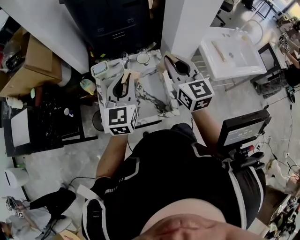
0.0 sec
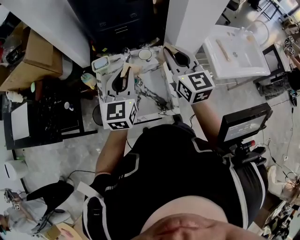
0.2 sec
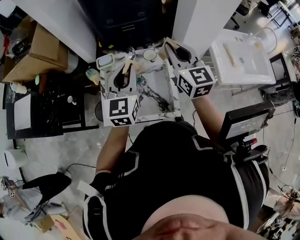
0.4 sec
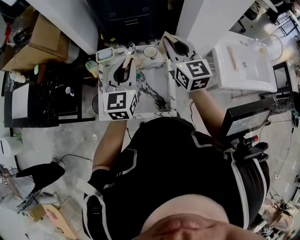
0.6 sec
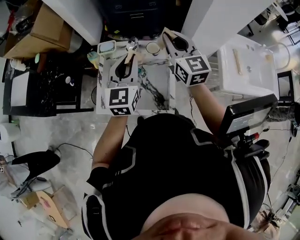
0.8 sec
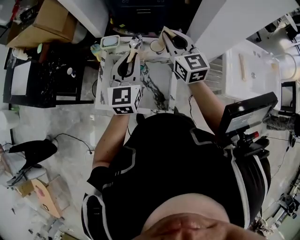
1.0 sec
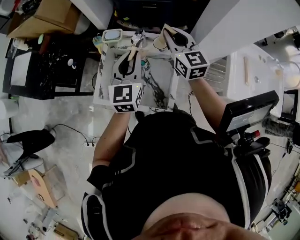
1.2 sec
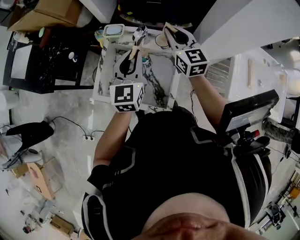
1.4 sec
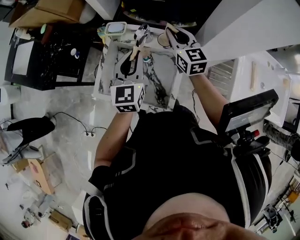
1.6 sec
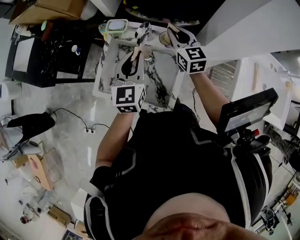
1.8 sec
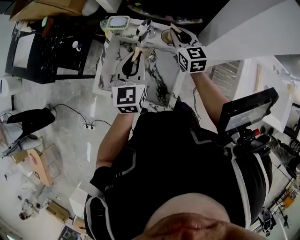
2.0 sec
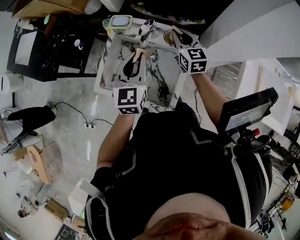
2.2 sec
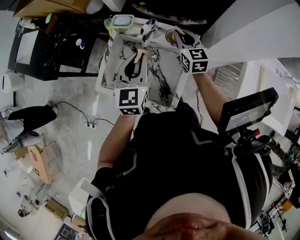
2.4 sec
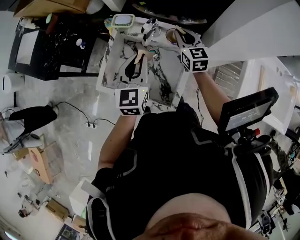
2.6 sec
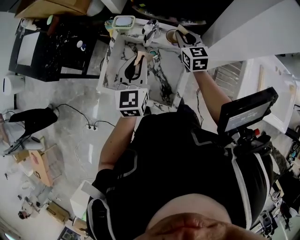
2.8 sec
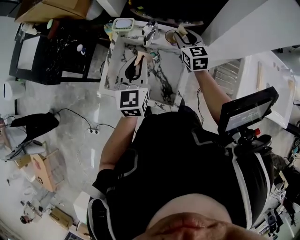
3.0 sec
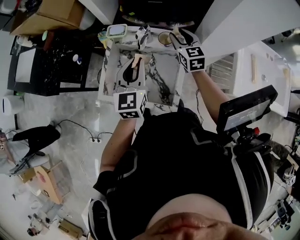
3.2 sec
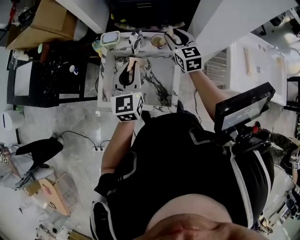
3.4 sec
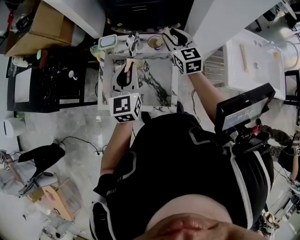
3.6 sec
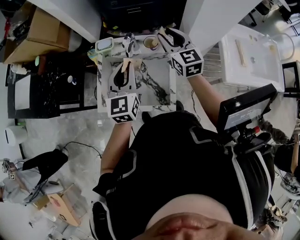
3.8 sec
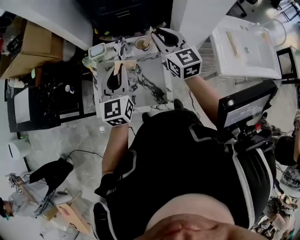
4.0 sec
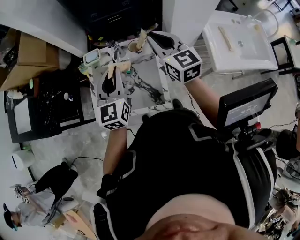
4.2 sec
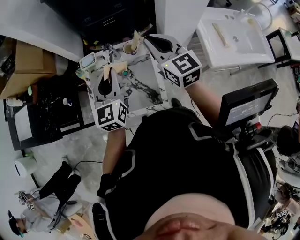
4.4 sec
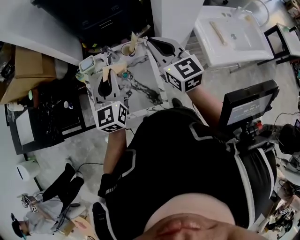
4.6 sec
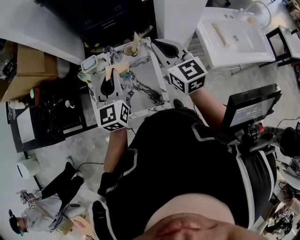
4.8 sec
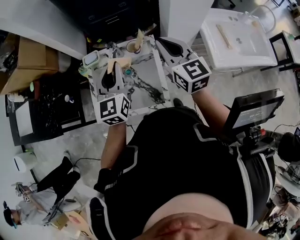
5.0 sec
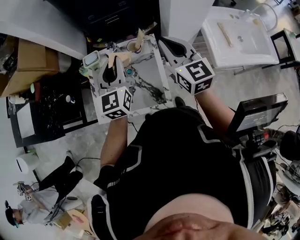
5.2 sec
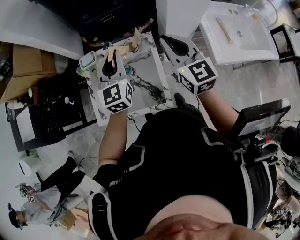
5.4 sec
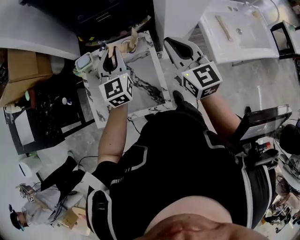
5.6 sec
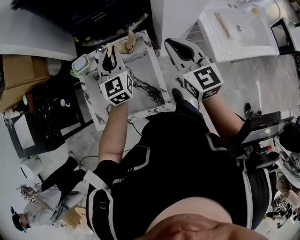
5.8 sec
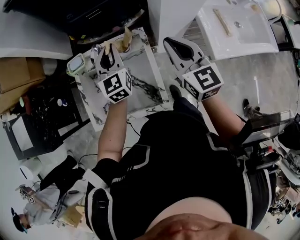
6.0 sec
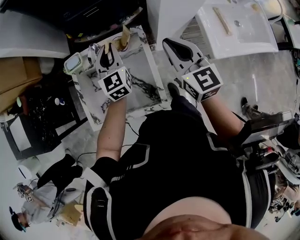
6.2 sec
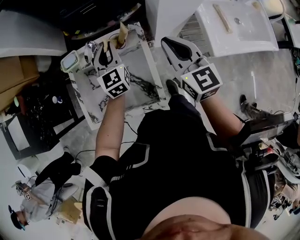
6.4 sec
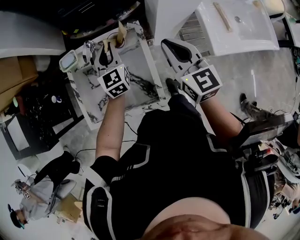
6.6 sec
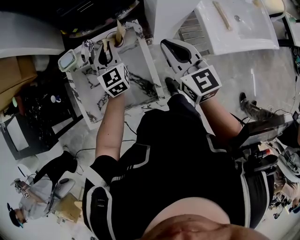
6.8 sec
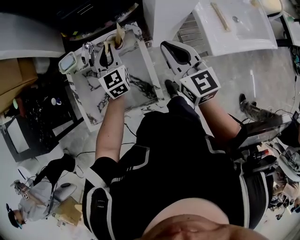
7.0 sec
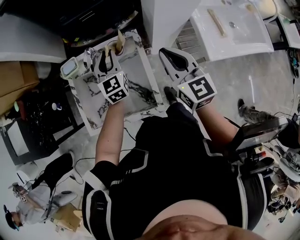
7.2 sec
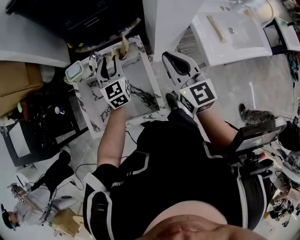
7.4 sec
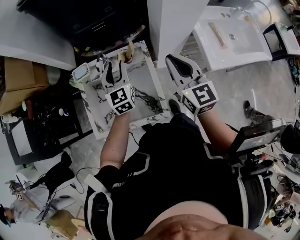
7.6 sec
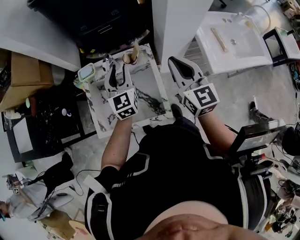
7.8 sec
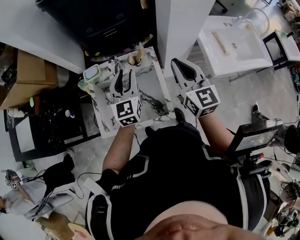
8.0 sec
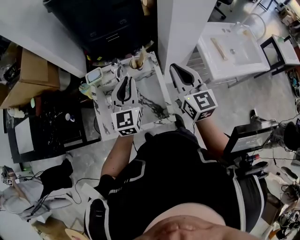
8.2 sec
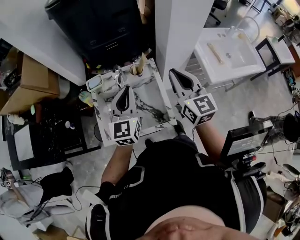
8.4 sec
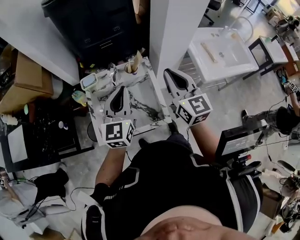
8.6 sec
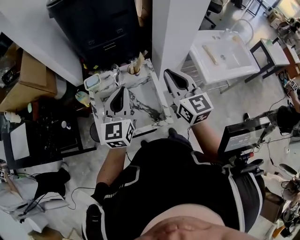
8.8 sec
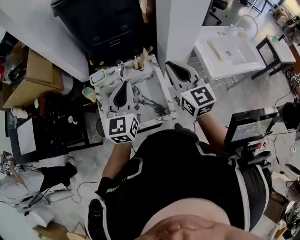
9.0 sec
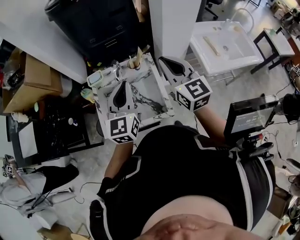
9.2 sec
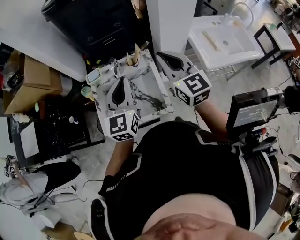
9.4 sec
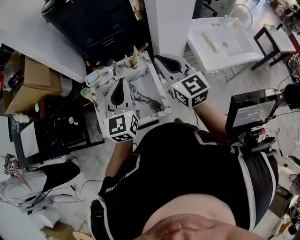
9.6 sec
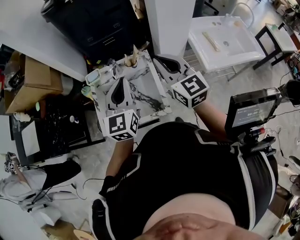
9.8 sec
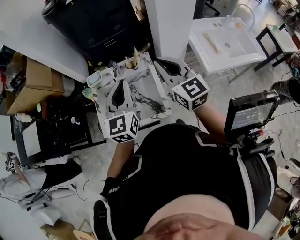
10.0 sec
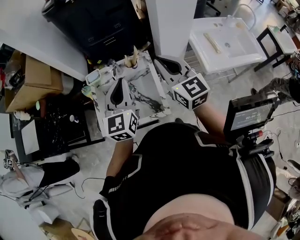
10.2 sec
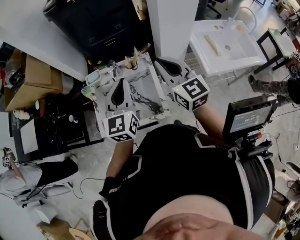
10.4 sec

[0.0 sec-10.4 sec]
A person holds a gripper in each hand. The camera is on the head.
0.0 sec to 1.4 sec: The right gripper goes roughly 20 cm forward and downward, and rotates about 30 degrees. Meanwhile the left gripper moves forward and downward, roughly 10 cm, and rotates about 20 degrees.
1.4 sec to 3.0 sec: The right gripper moves downward, some 10 cm, and opens.
3.0 sec to 4.4 sec: The left gripper moves upward, about 5 cm. Meanwhile the right gripper goes about 25 cm upward and backward, and closes.
4.4 sec to 6.0 sec: The left gripper shifts about 15 cm forward, downward and to the right. The right gripper is displaced to the right and downward by approximately 10 cm.
6.0 sec to 7.4 sec: The left gripper opens its fingers.
7.4 sec to 9.0 sec: The right gripper is displaced upward, backward and to the left by roughly 15 cm, while the left gripper goes roughly 25 cm backward and upward, and closes.
9.0 sec to 10.4 sec: The grippers stay close to where they were, moving slightly.

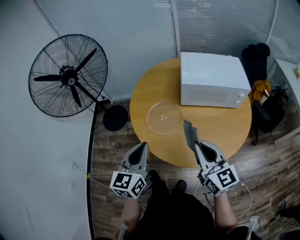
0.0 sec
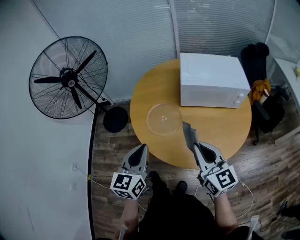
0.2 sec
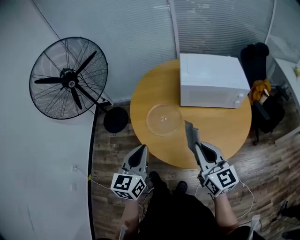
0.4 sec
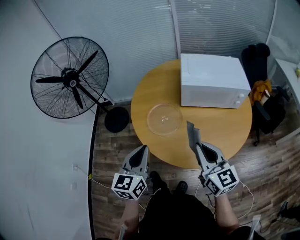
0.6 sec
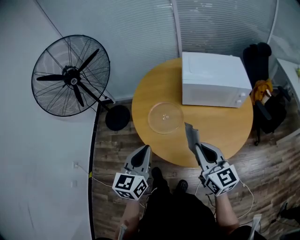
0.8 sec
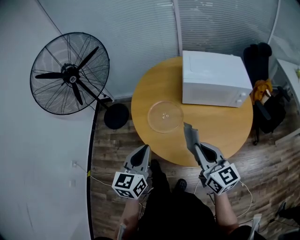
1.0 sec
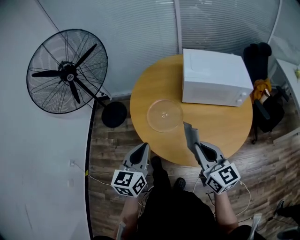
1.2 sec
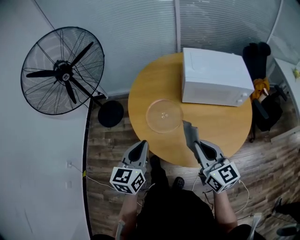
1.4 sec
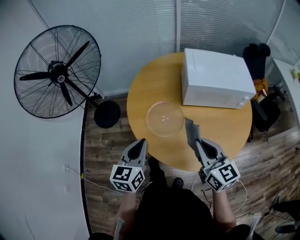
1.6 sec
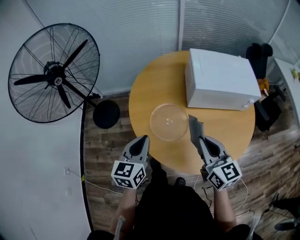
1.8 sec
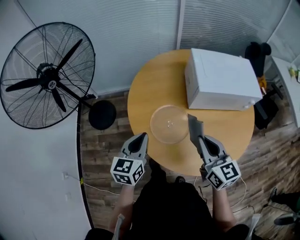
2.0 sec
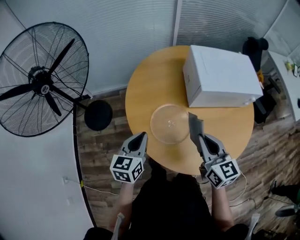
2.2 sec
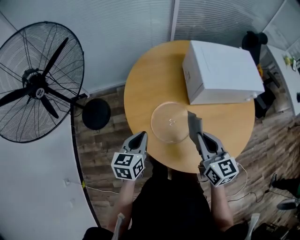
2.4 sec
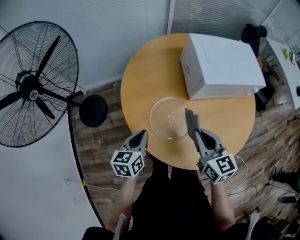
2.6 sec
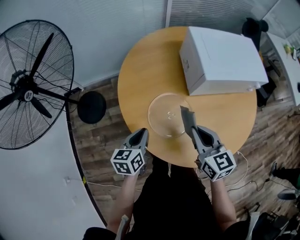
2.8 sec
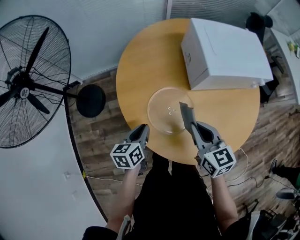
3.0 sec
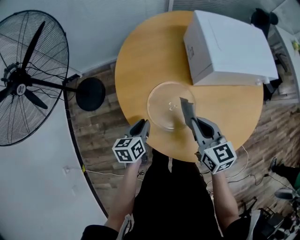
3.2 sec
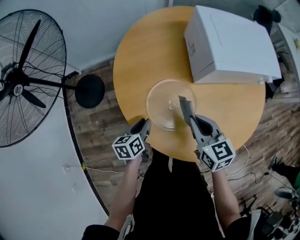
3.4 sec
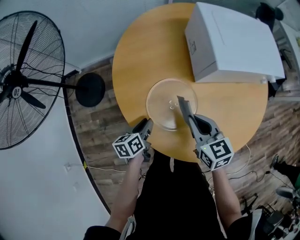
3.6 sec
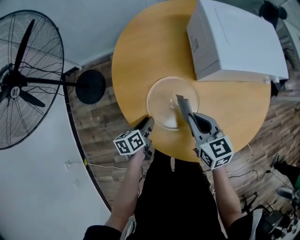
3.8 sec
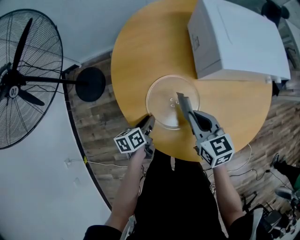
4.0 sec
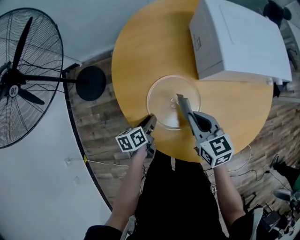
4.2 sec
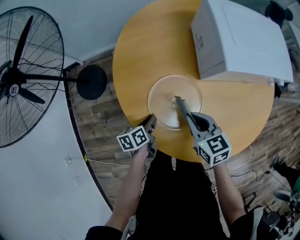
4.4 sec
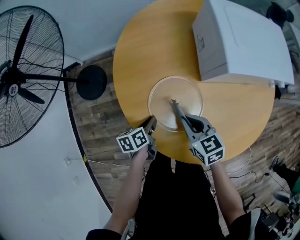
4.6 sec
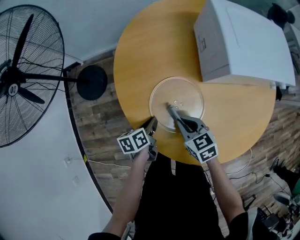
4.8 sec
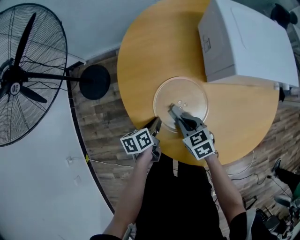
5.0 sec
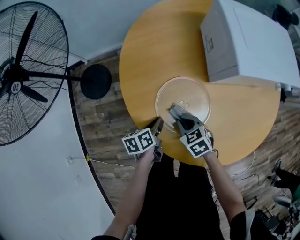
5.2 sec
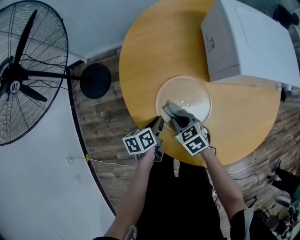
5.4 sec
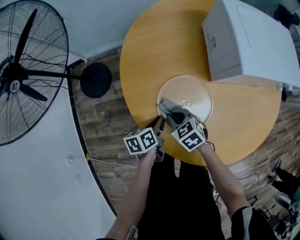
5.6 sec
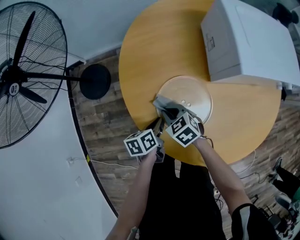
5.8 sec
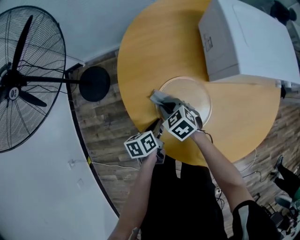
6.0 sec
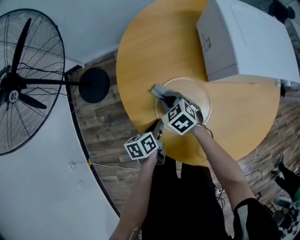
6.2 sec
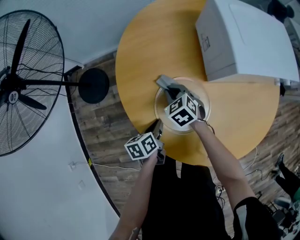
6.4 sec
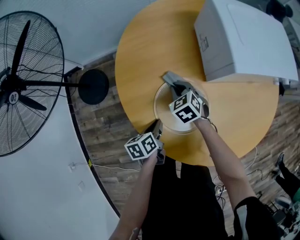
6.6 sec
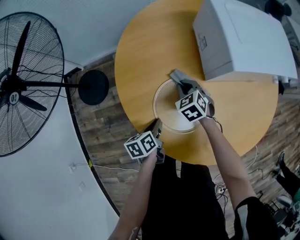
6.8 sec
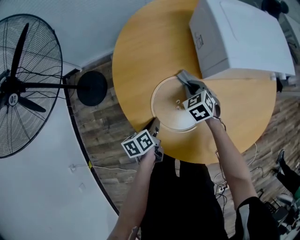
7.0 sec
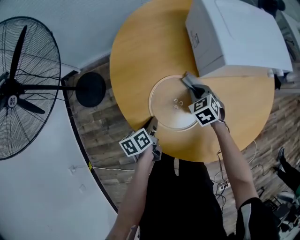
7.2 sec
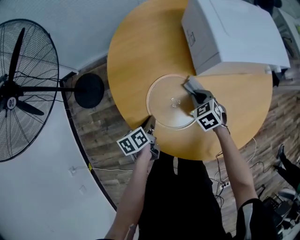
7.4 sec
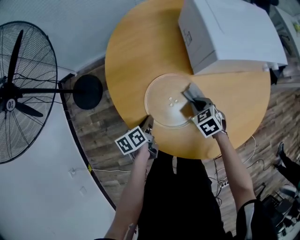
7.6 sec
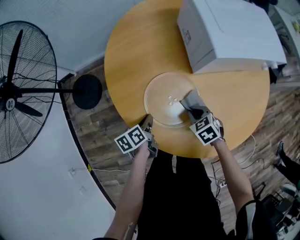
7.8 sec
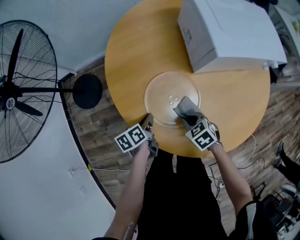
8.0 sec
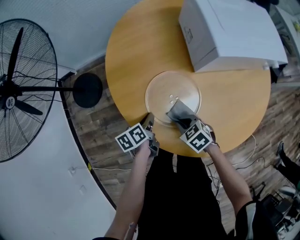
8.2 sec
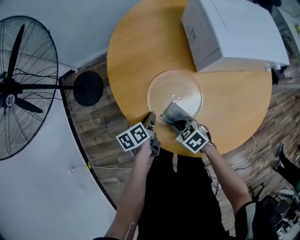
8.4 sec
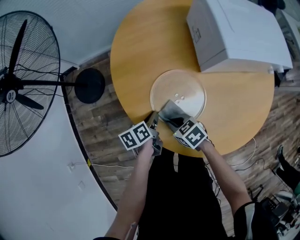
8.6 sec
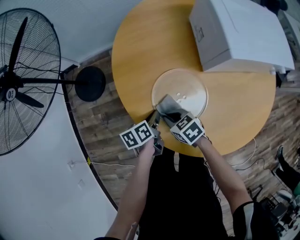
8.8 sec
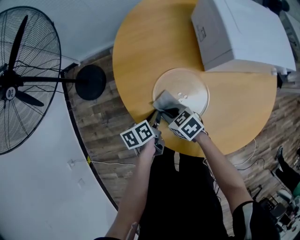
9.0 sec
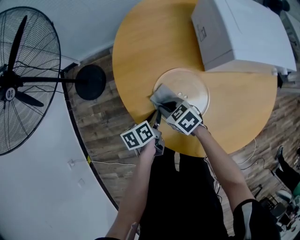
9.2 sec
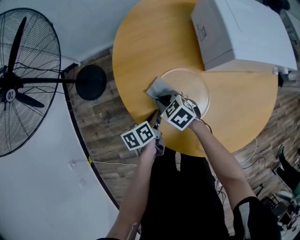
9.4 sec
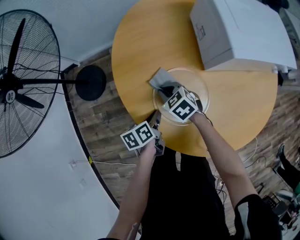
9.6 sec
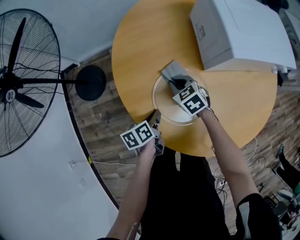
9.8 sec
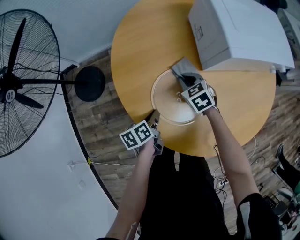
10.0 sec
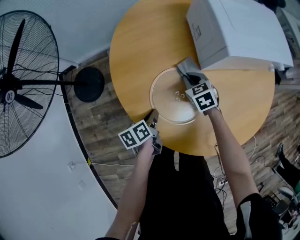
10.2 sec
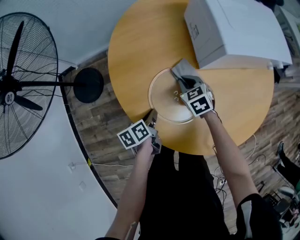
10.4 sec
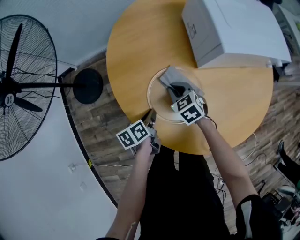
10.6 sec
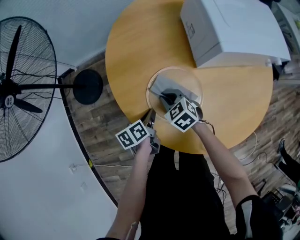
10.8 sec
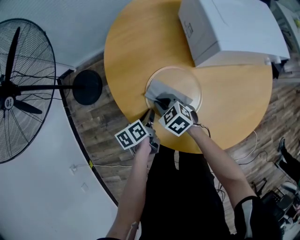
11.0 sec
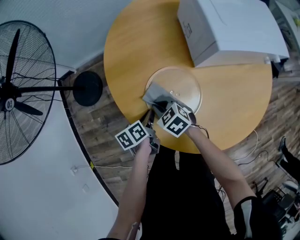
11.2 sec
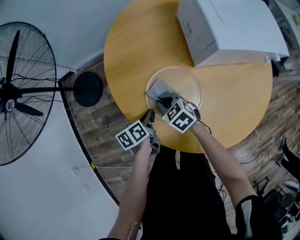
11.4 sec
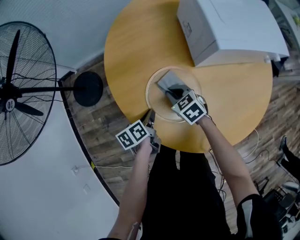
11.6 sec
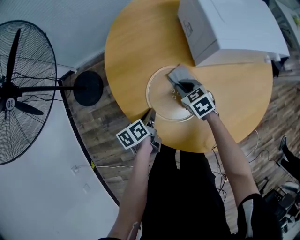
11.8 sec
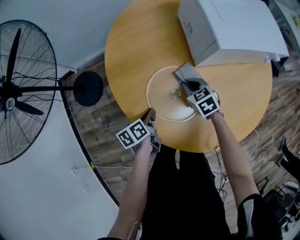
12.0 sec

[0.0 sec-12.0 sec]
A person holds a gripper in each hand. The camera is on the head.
0.0 sec to 1.6 sec: The left gripper goes roughly 10 cm forward and downward. The right gripper travels forward by roughly 5 cm.
1.6 sec to 3.0 sec: The right gripper travels forward, downward and to the left by some 20 cm. The left gripper heads downward and forward, covering some 25 cm, and changes its angle by roughly 30 degrees.
3.0 sec to 4.4 sec: Both grippers move downward, some 10 cm. The left gripper turns by about 20 degrees.
4.4 sec to 6.0 sec: The right gripper shifts about 20 cm to the left, downward and forward, and turns by about 30 degrees.
6.0 sec to 7.6 sec: The right gripper shifts about 20 cm to the right, and swivels some 20 degrees.
7.6 sec to 9.0 sec: The right gripper moves to the left, about 20 cm, and changes its angle by about 30 degrees.
9.0 sec to 10.4 sec: The right gripper heads to the right and forward, covering some 15 cm, and changes its angle by approximately 30 degrees.
10.4 sec to 12.0 sec: The right gripper travels to the left and back again, some 10 cm each way.

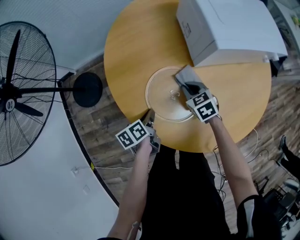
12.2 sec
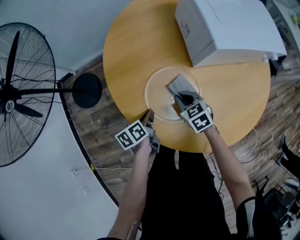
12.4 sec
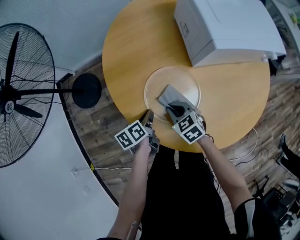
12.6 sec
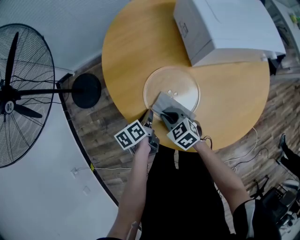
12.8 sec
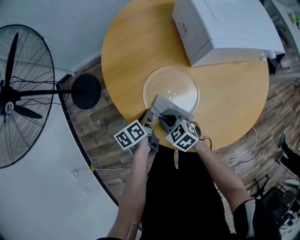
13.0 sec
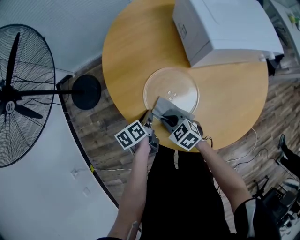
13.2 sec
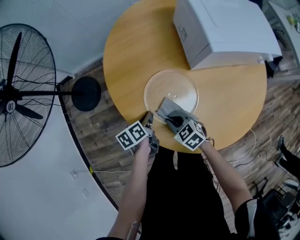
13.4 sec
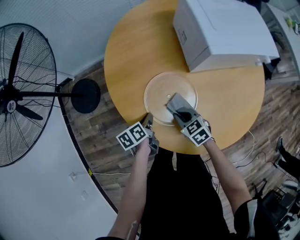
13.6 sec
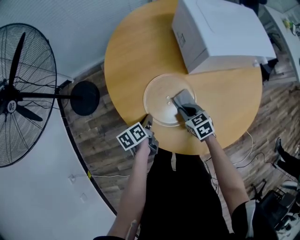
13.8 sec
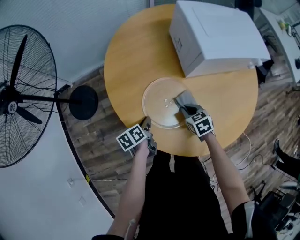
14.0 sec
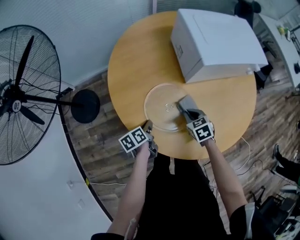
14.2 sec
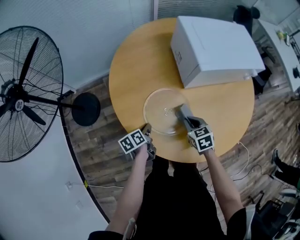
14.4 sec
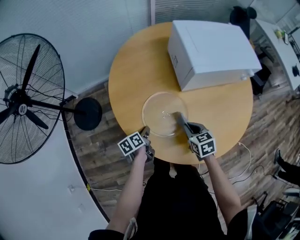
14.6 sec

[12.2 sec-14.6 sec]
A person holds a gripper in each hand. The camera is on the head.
12.2 sec to 13.4 sec: The right gripper is displaced backward and to the left by some 15 cm.
13.4 sec to 14.6 sec: The right gripper moves to the right and upward, approximately 15 cm, and changes its angle by roughly 30 degrees.
